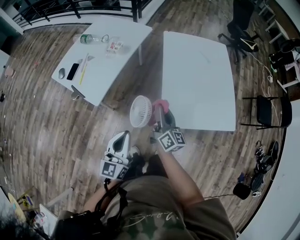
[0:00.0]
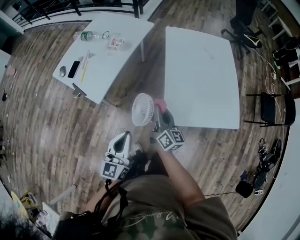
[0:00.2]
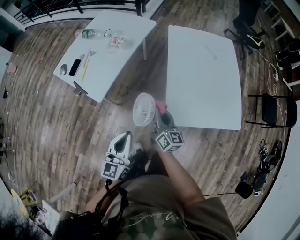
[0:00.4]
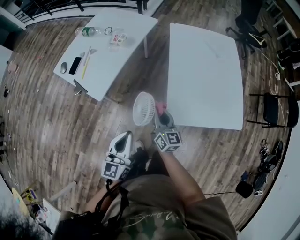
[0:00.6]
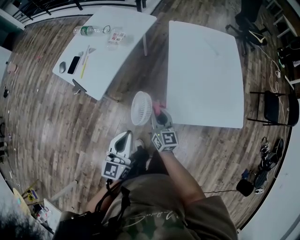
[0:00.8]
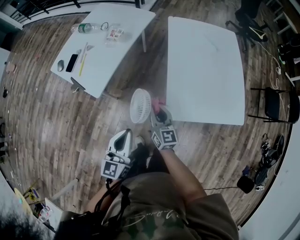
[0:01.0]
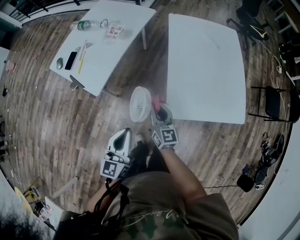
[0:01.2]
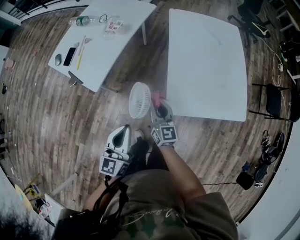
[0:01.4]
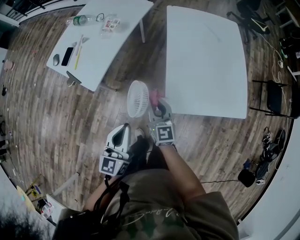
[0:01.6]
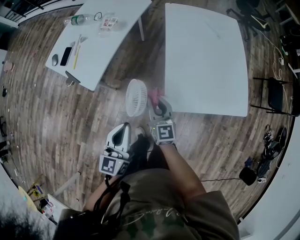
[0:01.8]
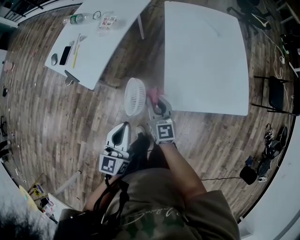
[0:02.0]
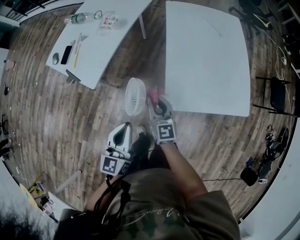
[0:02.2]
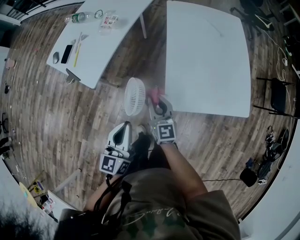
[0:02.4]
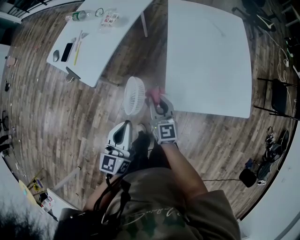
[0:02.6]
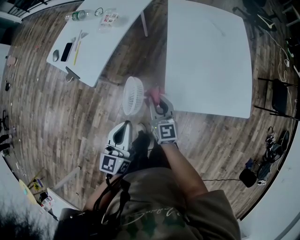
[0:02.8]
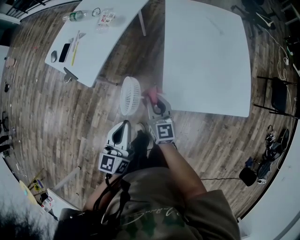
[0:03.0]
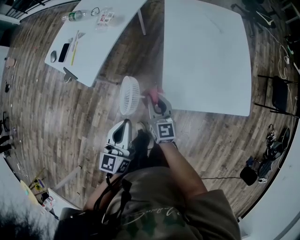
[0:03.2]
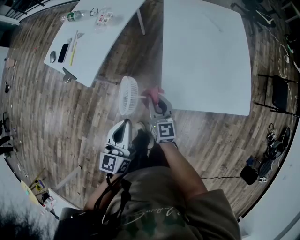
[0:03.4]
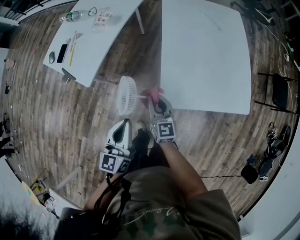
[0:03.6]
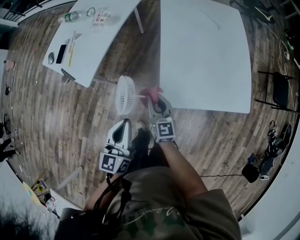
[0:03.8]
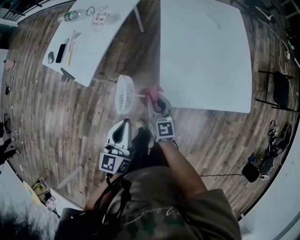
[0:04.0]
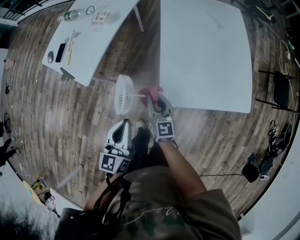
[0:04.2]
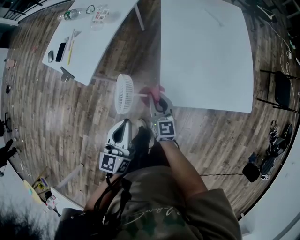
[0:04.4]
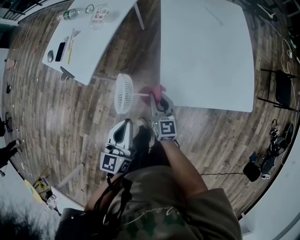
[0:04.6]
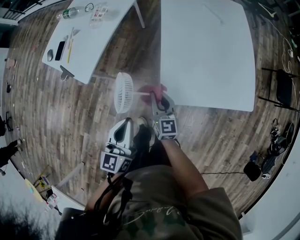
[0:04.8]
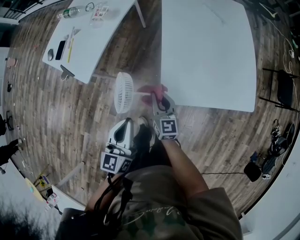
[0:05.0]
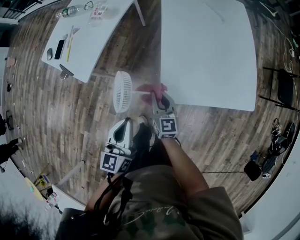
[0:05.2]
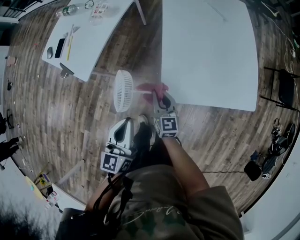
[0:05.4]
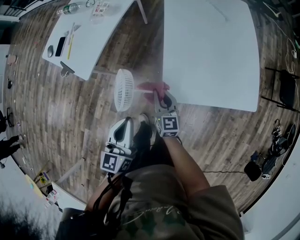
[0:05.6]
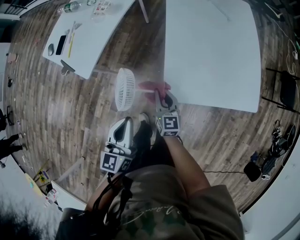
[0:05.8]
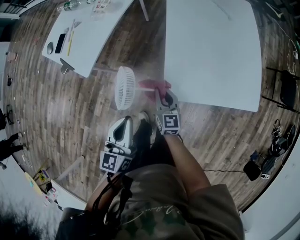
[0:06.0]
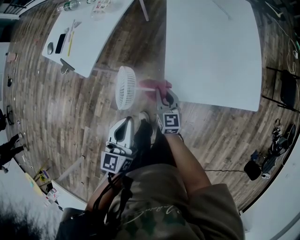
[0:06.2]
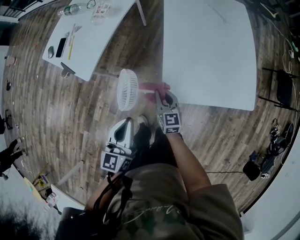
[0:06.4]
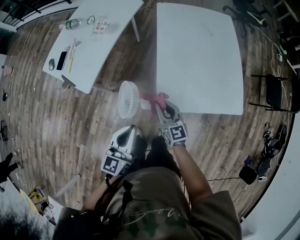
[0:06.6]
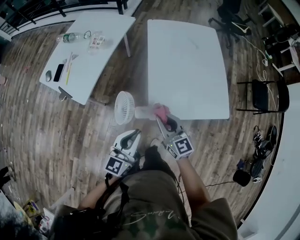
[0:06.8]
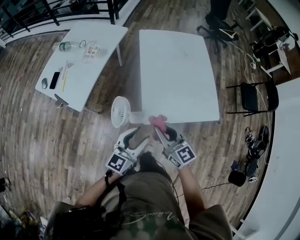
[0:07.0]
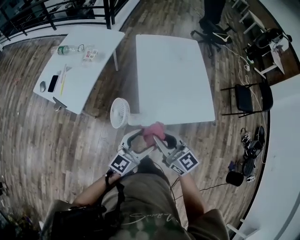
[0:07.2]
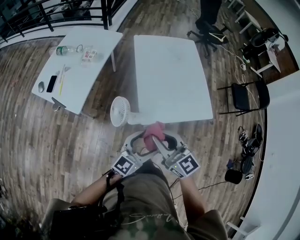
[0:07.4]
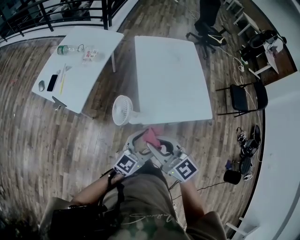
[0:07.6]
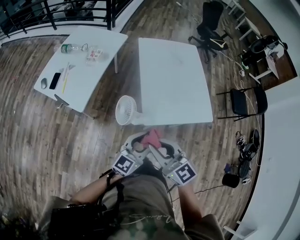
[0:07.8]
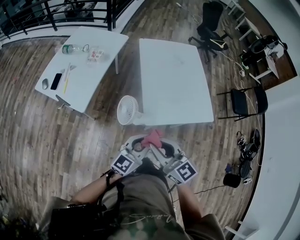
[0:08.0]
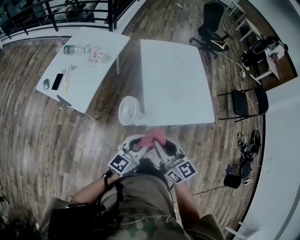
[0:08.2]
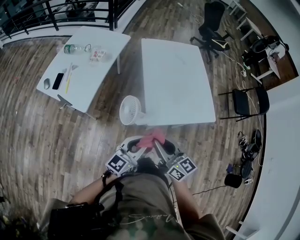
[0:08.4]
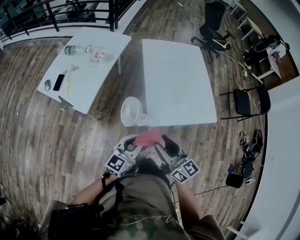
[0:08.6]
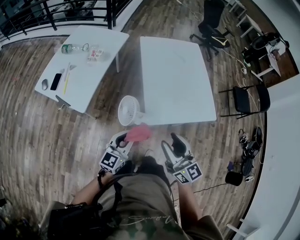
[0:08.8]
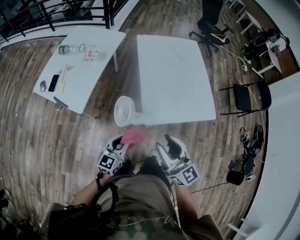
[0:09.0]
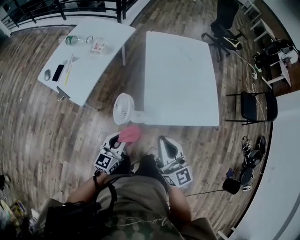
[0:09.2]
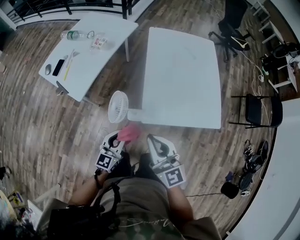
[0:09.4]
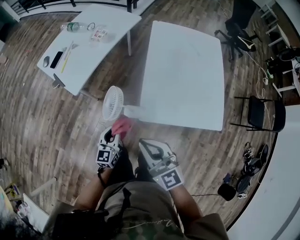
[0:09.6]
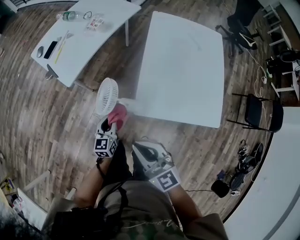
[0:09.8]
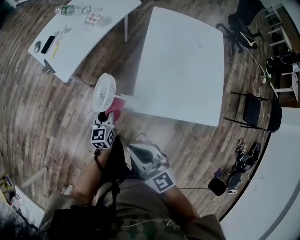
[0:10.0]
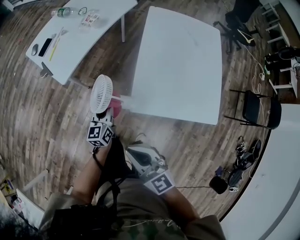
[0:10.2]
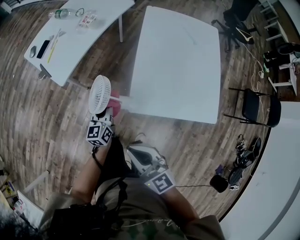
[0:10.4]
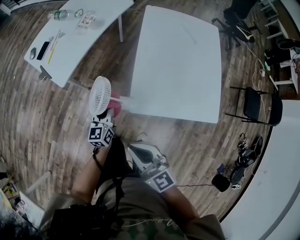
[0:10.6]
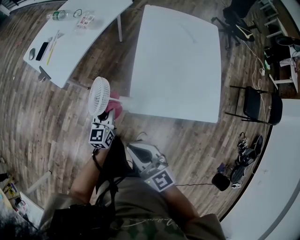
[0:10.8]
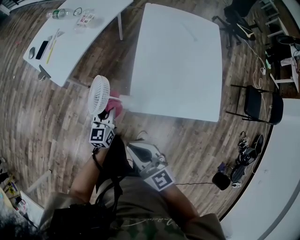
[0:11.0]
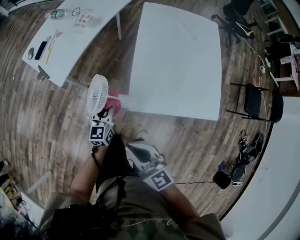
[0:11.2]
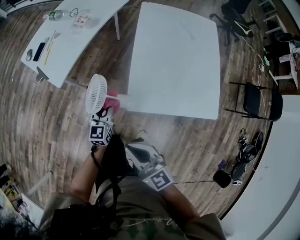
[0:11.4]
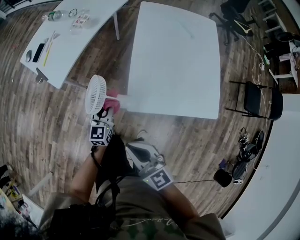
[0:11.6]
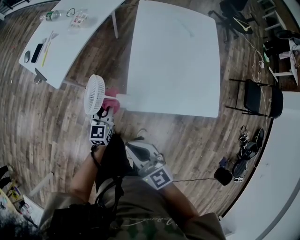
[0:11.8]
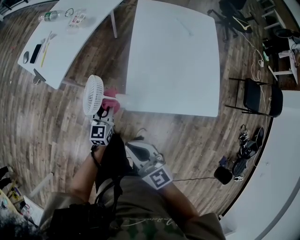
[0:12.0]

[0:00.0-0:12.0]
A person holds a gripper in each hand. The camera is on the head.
0:00.0 to 0:01.6: The right gripper is displaced downward and to the left by approximately 10 cm, and rotates about 30 degrees.
0:01.6 to 0:03.0: The grippers make only small movements.
0:03.0 to 0:04.4: There are only small adjustments of the grippers.
0:04.4 to 0:06.0: The right gripper goes approximately 5 cm downward.
0:06.0 to 0:07.6: The left gripper heads to the right, upward and backward, covering some 15 cm, rotates some 40 degrees, and opens its fingers. The right gripper moves upward and backward, roughly 35 cm, and rotates roughly 30 degrees.
0:07.6 to 0:09.0: The right gripper swivels approximately 20 degrees; the left gripper travels to the left and downward by some 15 cm, and closes.
0:09.0 to 0:10.4: The left gripper moves roughly 15 cm, and swivels approximately 40 degrees; the right gripper shifts some 10 cm downward, swivels roughly 30 degrees, and closes its fingers.
0:10.4 to 0:12.0: The left gripper swivels some 20 degrees.

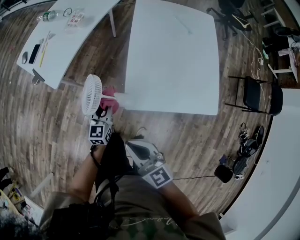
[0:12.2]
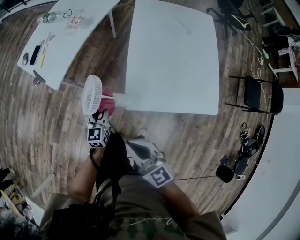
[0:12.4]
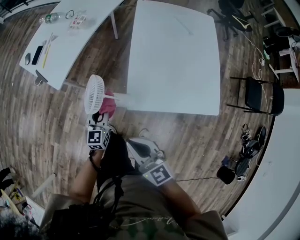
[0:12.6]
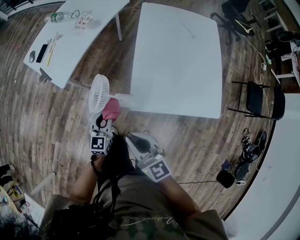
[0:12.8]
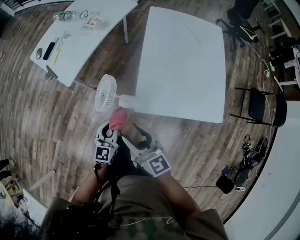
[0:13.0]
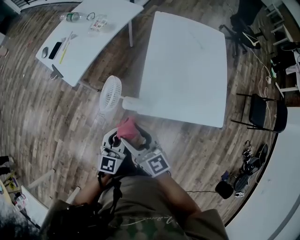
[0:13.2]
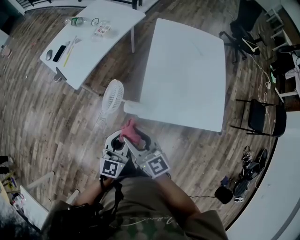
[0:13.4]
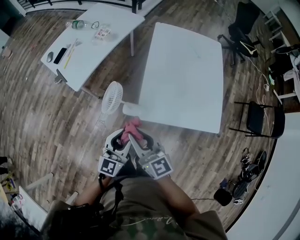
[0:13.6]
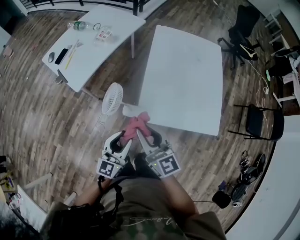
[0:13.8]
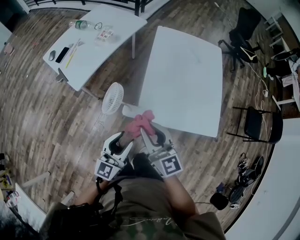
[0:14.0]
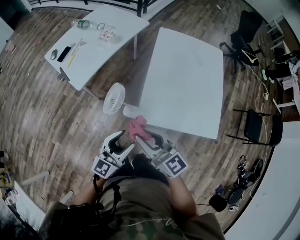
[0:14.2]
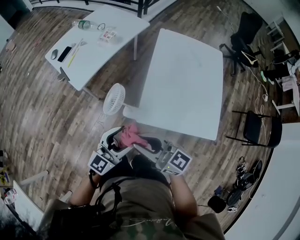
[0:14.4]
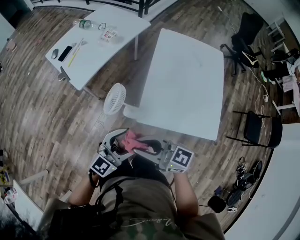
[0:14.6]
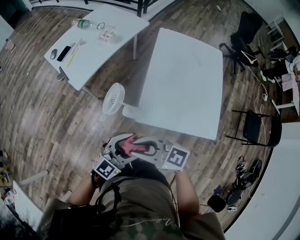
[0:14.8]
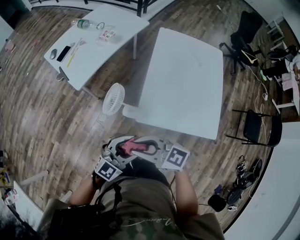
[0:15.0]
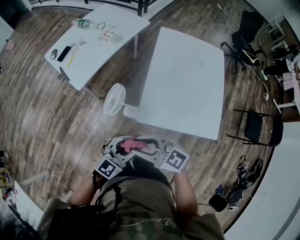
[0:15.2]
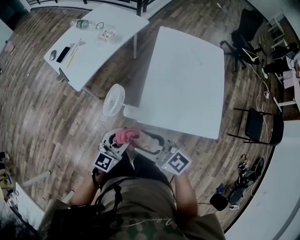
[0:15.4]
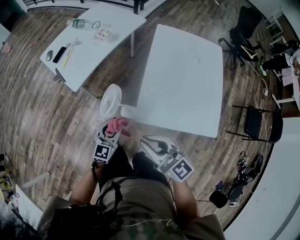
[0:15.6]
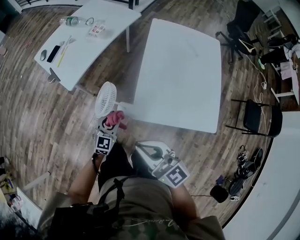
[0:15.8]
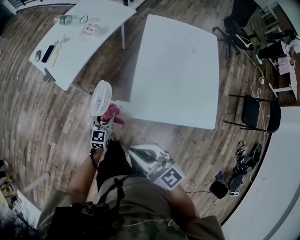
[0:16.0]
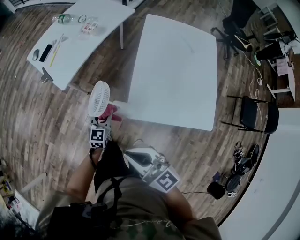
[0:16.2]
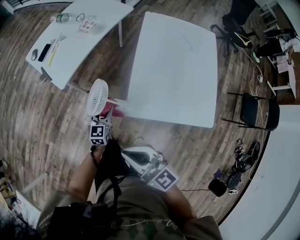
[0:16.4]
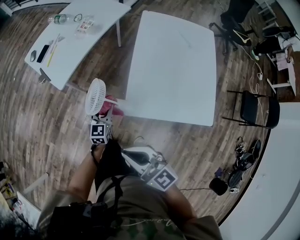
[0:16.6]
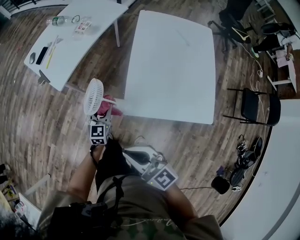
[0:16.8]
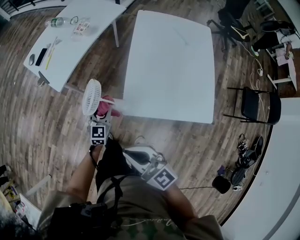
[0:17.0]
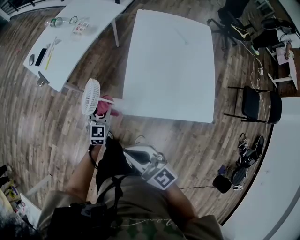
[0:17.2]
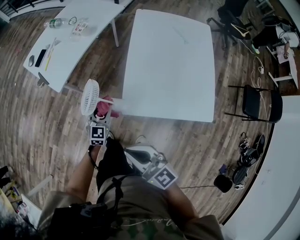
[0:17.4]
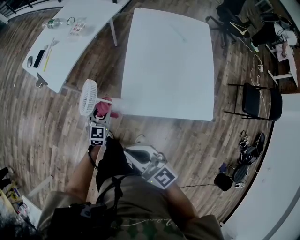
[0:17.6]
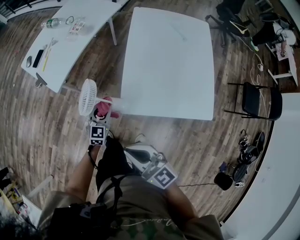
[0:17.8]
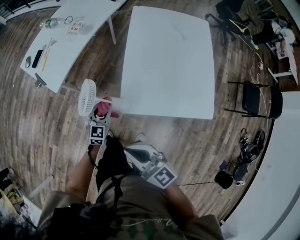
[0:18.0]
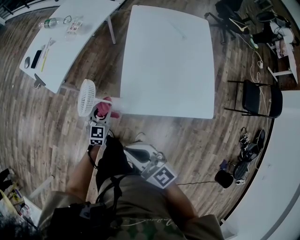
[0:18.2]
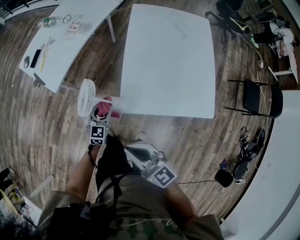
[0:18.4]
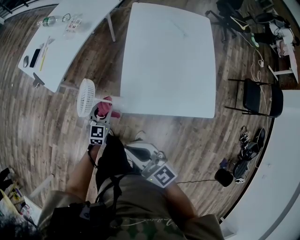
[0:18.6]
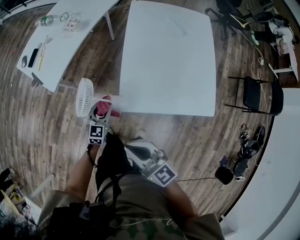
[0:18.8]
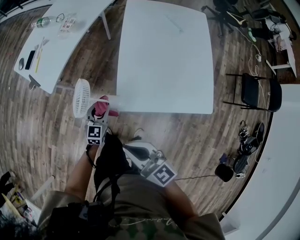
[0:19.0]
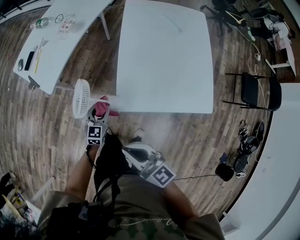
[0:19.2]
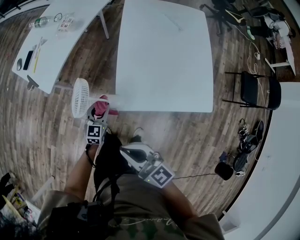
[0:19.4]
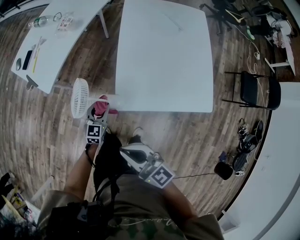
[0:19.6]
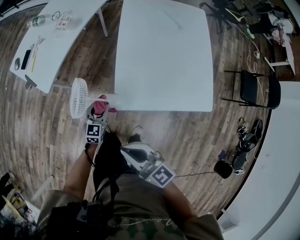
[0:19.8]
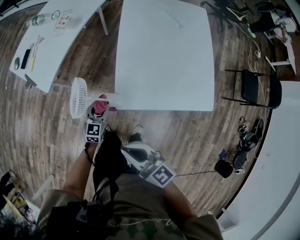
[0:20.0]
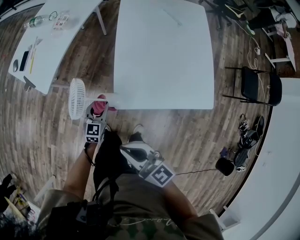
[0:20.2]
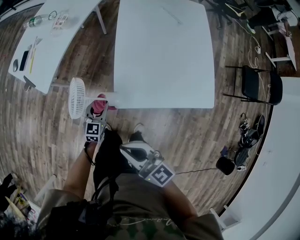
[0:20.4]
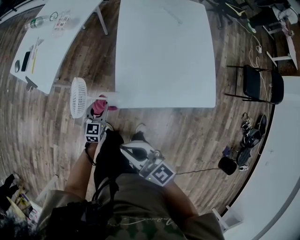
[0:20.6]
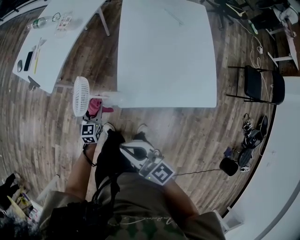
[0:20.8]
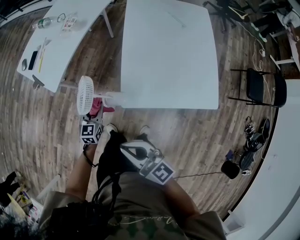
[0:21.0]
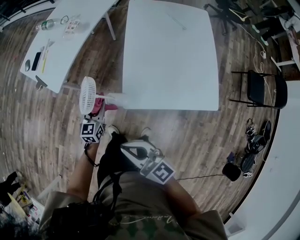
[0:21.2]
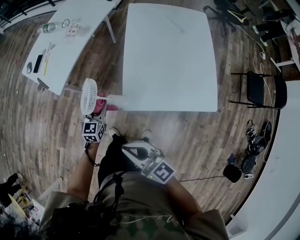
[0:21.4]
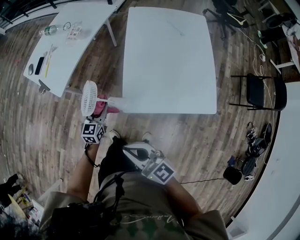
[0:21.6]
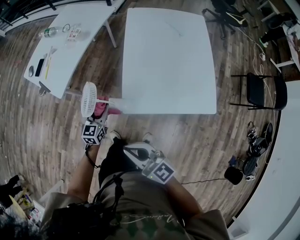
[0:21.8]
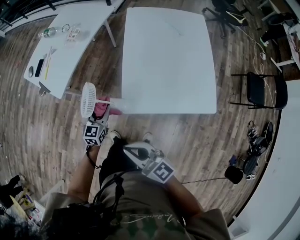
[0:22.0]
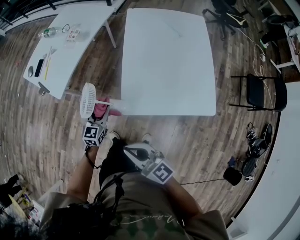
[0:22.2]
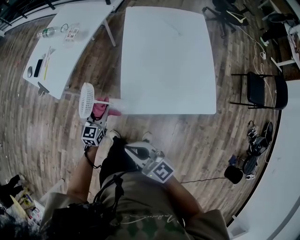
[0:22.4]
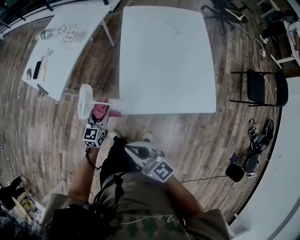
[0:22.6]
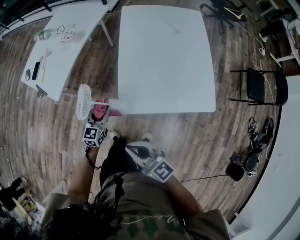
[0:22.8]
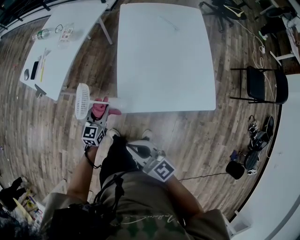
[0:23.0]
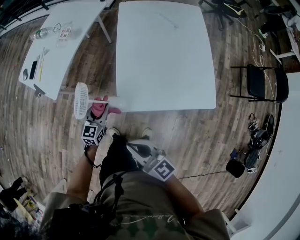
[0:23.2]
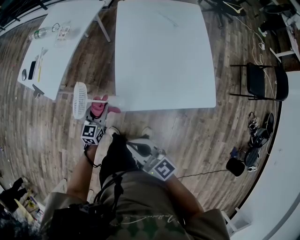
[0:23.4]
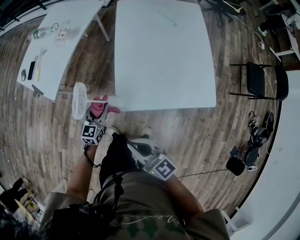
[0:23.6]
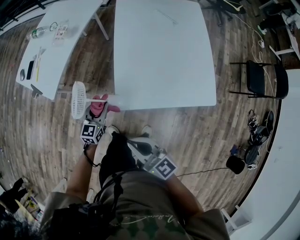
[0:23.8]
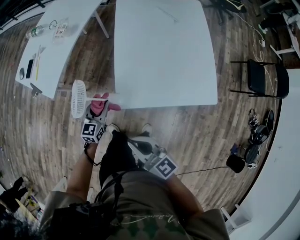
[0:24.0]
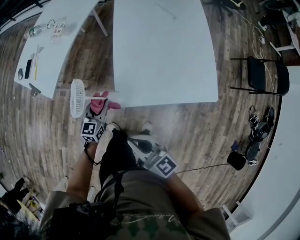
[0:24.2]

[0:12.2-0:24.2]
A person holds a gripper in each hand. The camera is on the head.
0:12.2 to 0:13.8: The left gripper shifts roughly 20 cm upward and backward, and opens up. Meanwhile the right gripper heads upward and forward, covering roughly 10 cm, and opens up.
0:13.8 to 0:15.2: The right gripper moves approximately 5 cm, and swivels about 40 degrees. The left gripper changes place by some 5 cm, and rotates about 30 degrees.
0:15.2 to 0:16.6: The right gripper swivels some 20 degrees, and closes; the left gripper is displaced forward and downward by some 25 cm, and rotates approximately 40 degrees.
0:16.6 to 0:18.2: The right gripper shifts by some 5 cm.
0:18.2 to 0:19.8: The grippers stay close to where they were, moving slightly.
0:19.8 to 0:21.2: The left gripper is displaced to the left by roughly 5 cm.
0:21.2 to 0:22.6: The left gripper ends up about 5 cm from where it was.
0:22.6 to 0:24.2: There are only small adjustments of the grippers.
